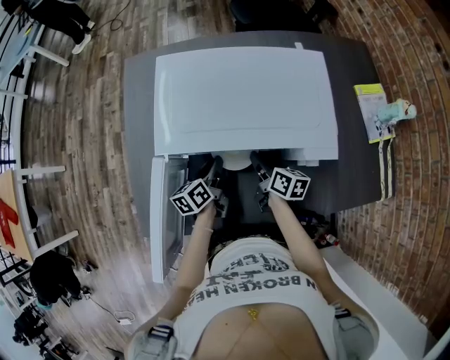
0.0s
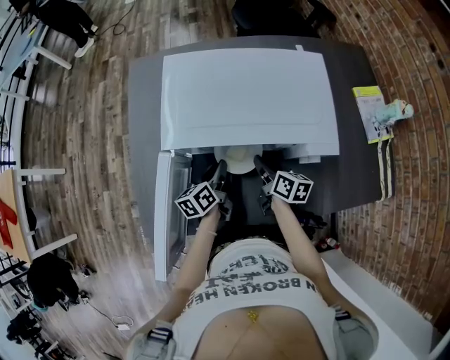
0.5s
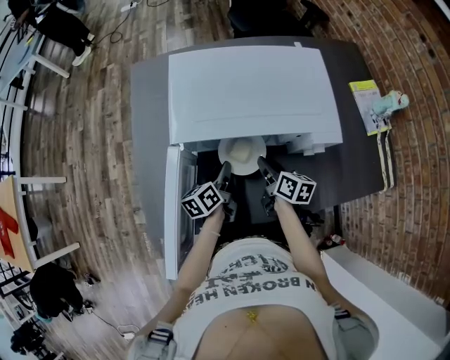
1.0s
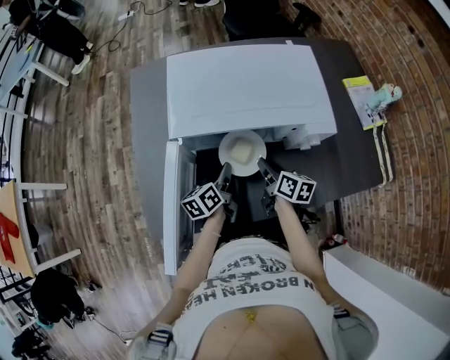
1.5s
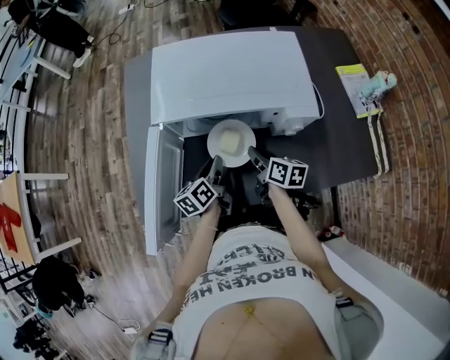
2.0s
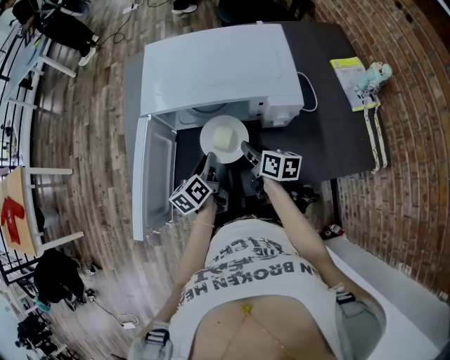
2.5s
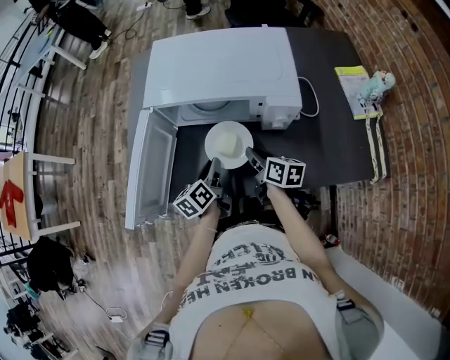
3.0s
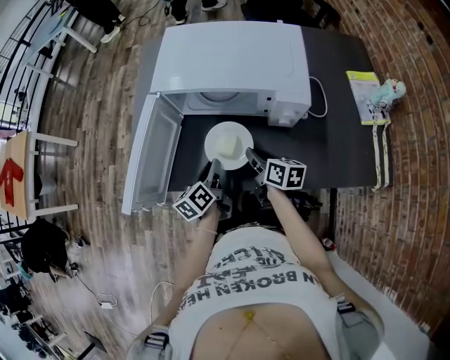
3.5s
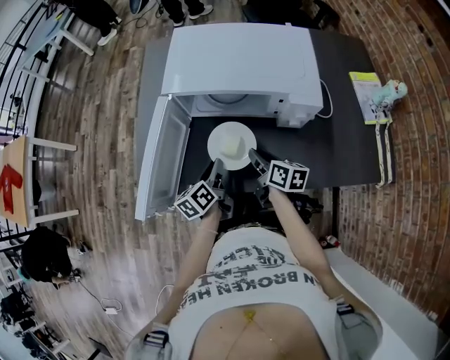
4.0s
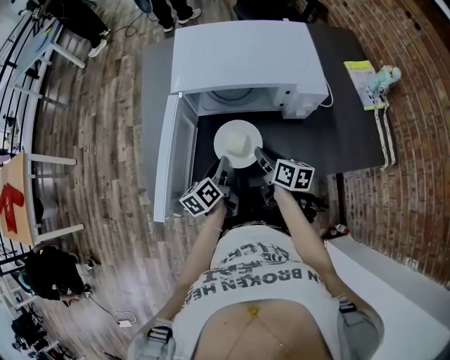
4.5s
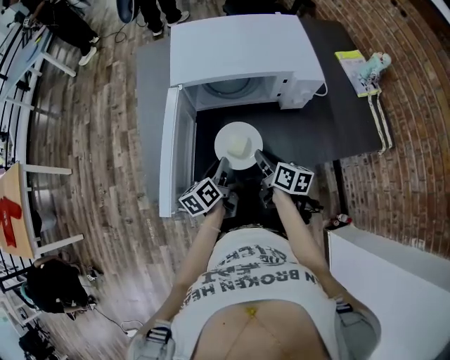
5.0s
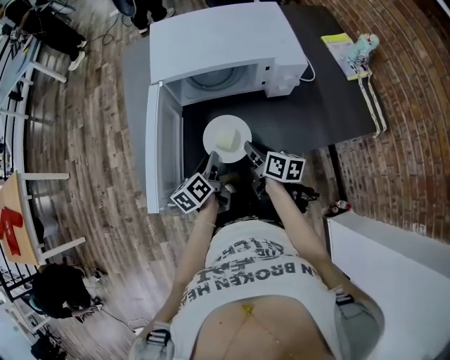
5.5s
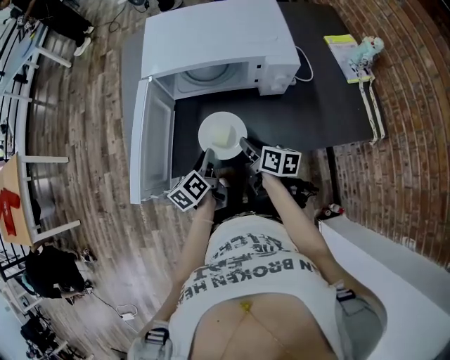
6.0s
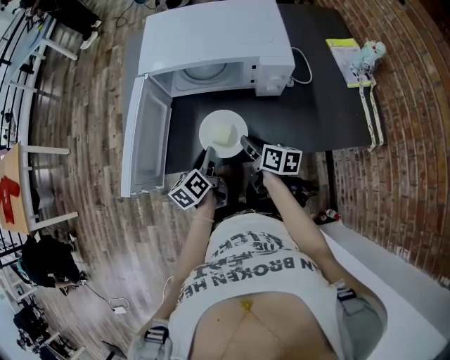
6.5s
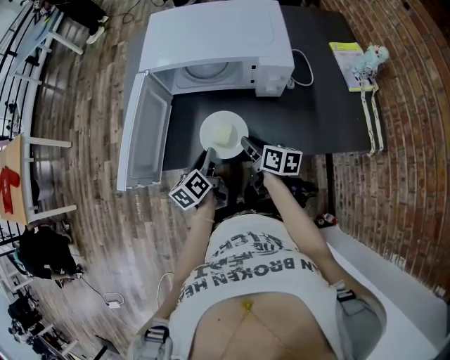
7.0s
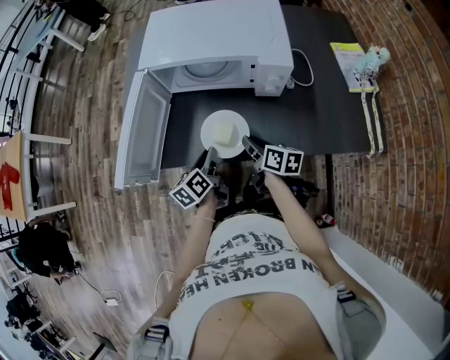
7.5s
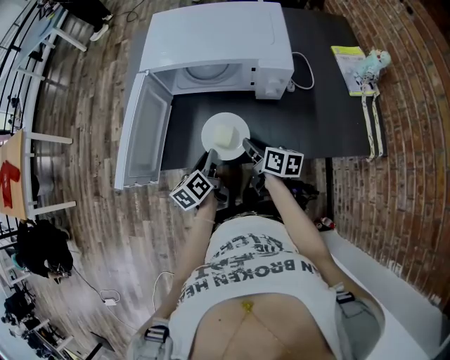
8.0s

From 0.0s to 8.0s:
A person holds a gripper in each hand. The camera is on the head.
From 0.0s to 2.0s: The two grippers go some 10 cm backward.
From 2.0s to 4.0s: The grippers both shift backward by roughly 5 cm.
From 4.0s to 6.0s: The two grippers go some 5 cm backward.
From 6.0s to 8.0s: The left gripper moves roughly 5 cm.

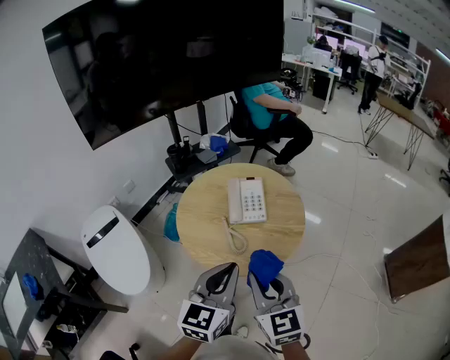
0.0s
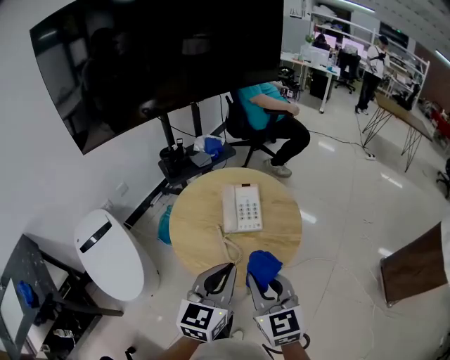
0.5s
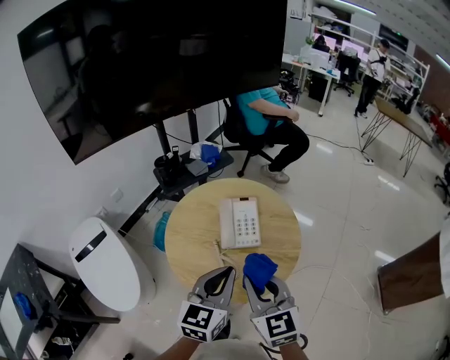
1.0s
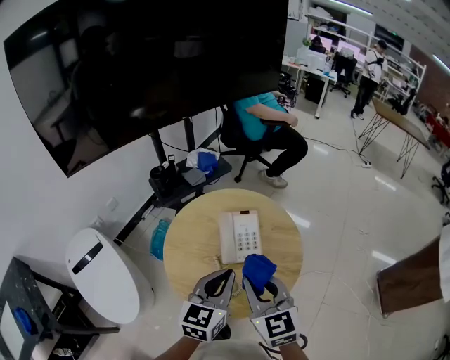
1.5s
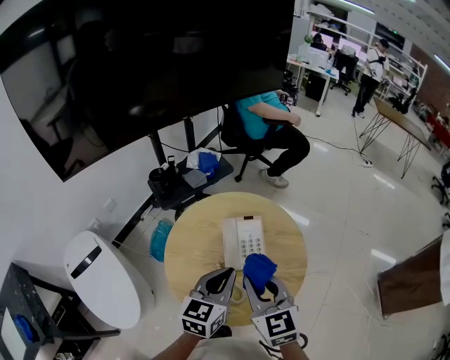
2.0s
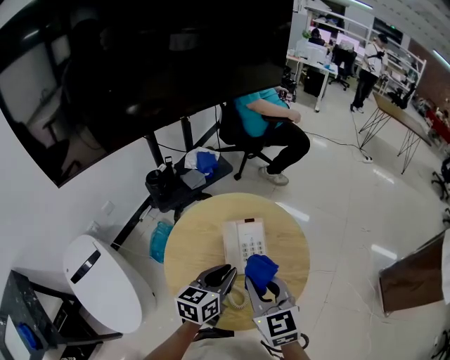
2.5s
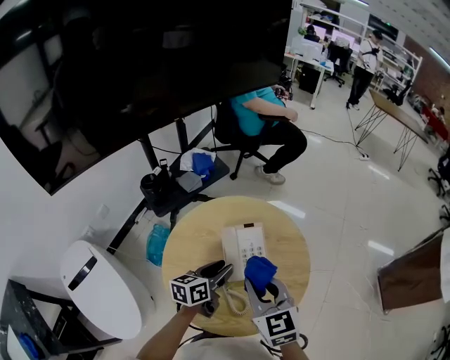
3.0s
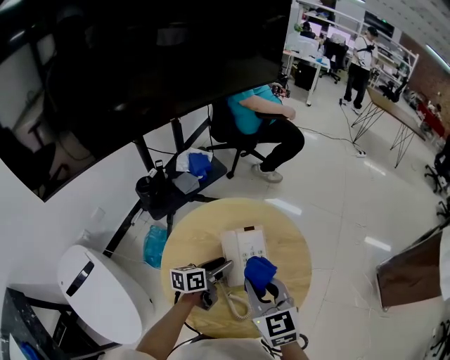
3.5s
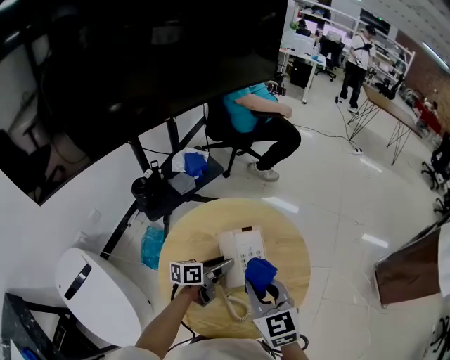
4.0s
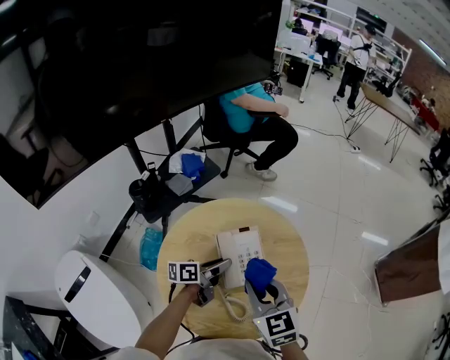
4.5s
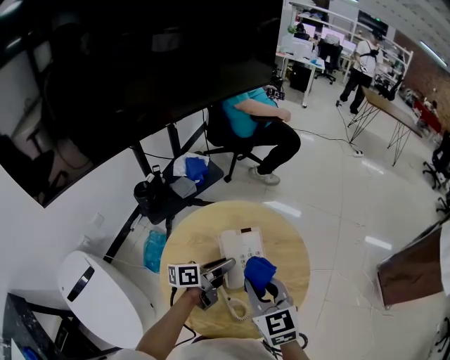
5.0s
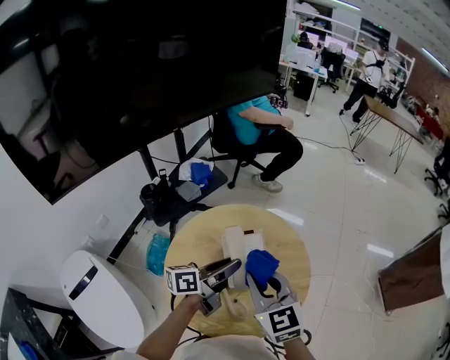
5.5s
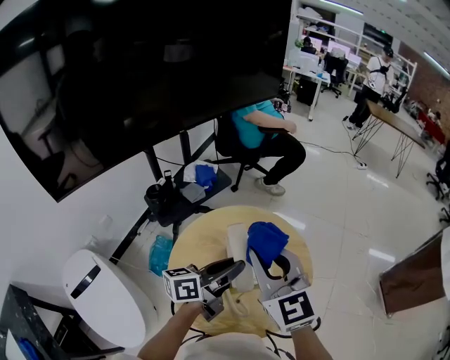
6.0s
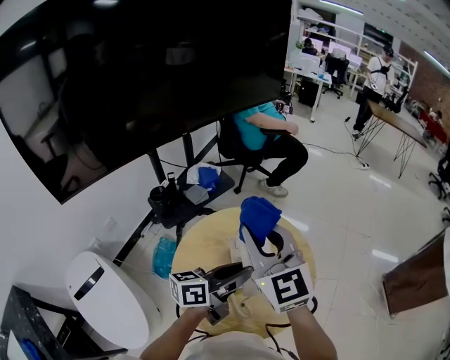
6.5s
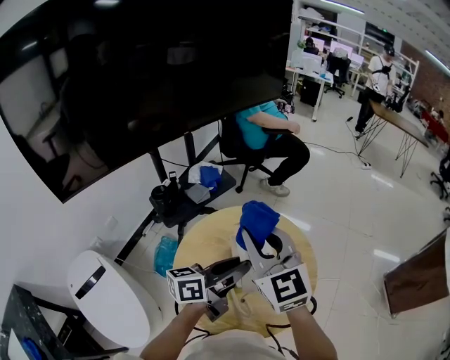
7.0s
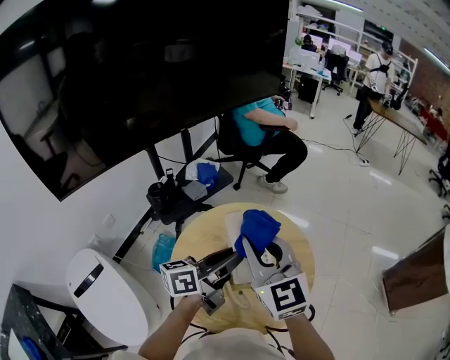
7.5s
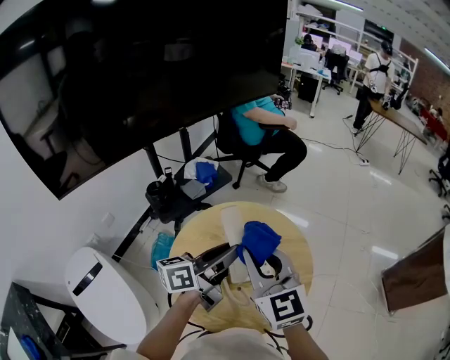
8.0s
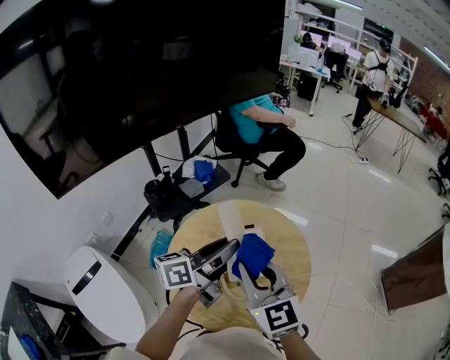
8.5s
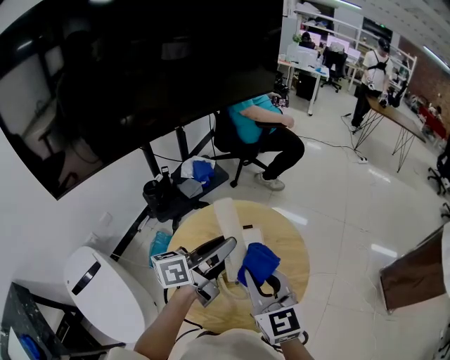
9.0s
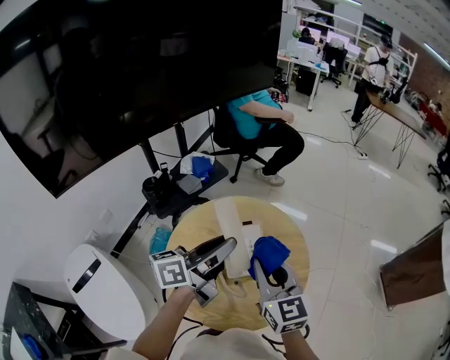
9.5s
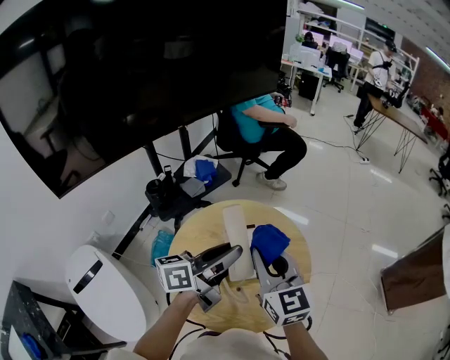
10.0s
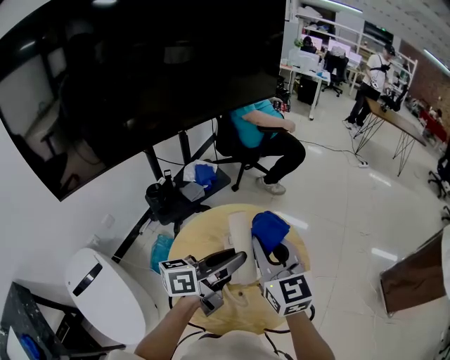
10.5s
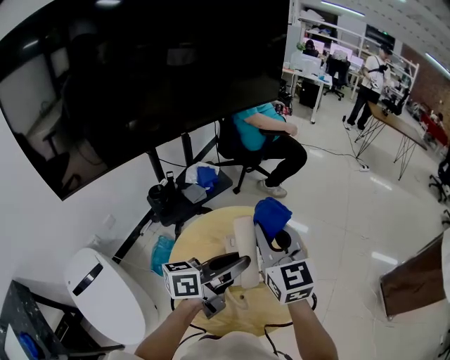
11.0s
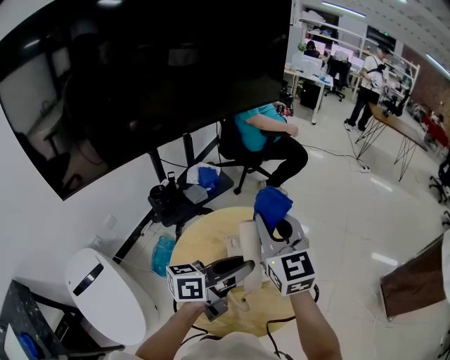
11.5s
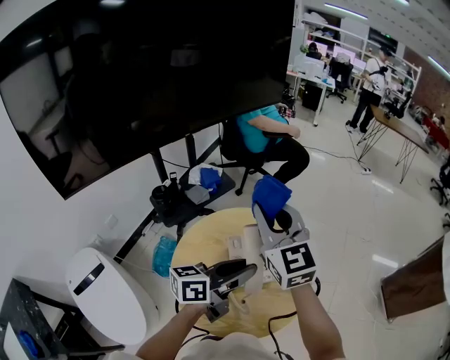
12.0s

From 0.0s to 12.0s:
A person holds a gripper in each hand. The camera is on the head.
From 0.0s to 2.0s: The two grippers go approximately 20 cm forward.
From 2.0s to 4.0s: The right gripper goes some 10 cm forward and downward. The left gripper goes roughly 20 cm downward and forward, swivels roughly 50 degrees, and opens.
From 4.0s to 6.0s: The grippers both shift upward by approximately 20 cm. The right gripper rotates approximately 20 degrees. The left gripper rotates some 20 degrees, and closes up.
From 6.0s to 8.0s: The grippers stay close to where they were, moving slightly.
From 10.0s to 12.0s: The right gripper heads upward and forward, covering approximately 10 cm.

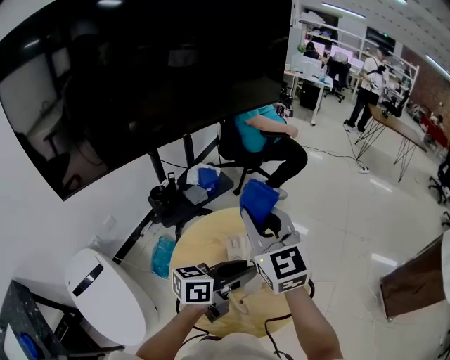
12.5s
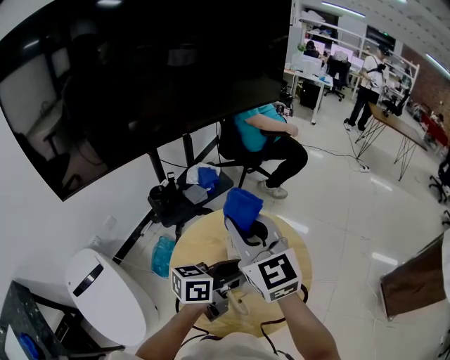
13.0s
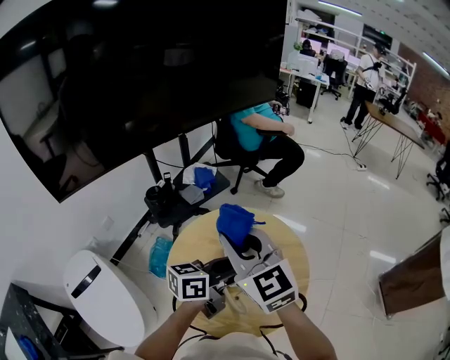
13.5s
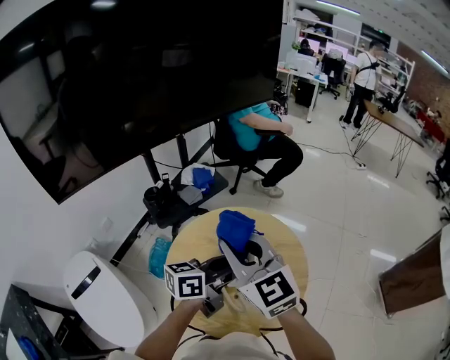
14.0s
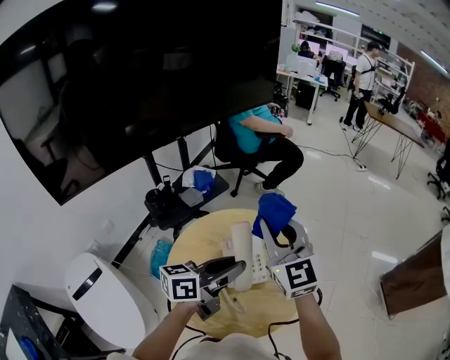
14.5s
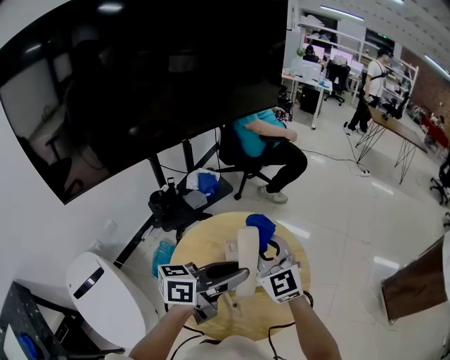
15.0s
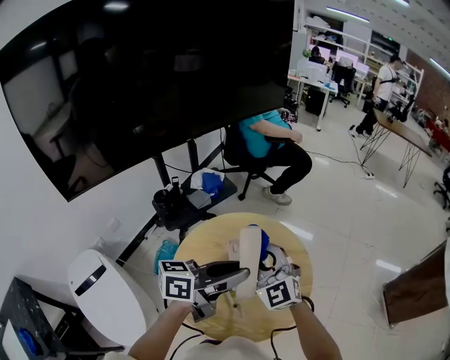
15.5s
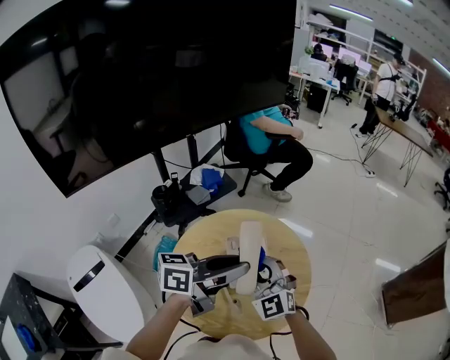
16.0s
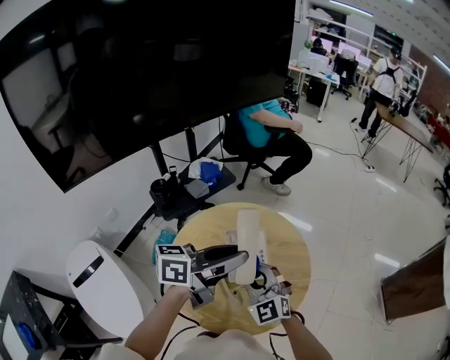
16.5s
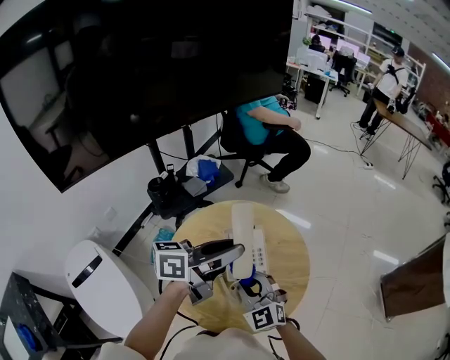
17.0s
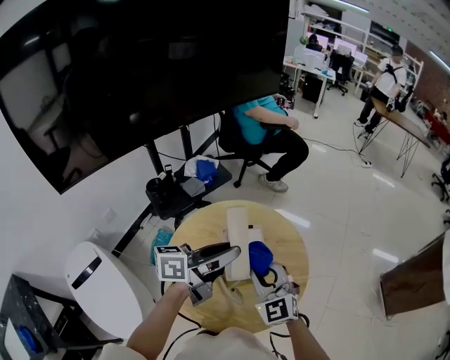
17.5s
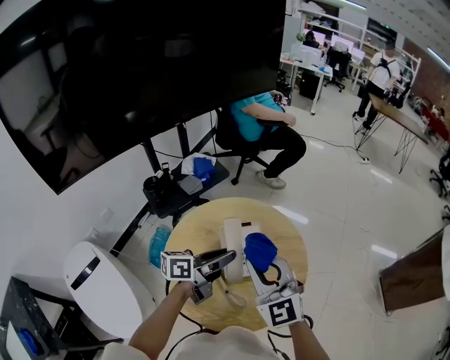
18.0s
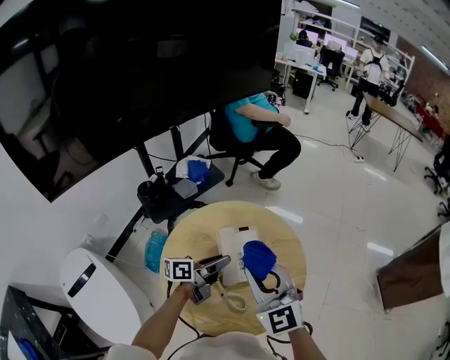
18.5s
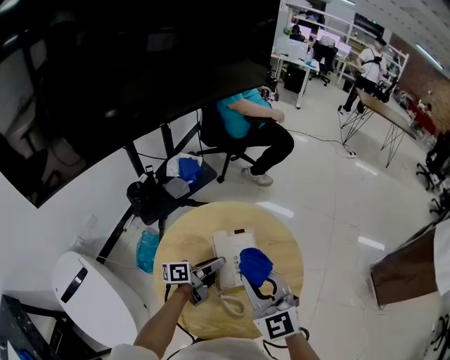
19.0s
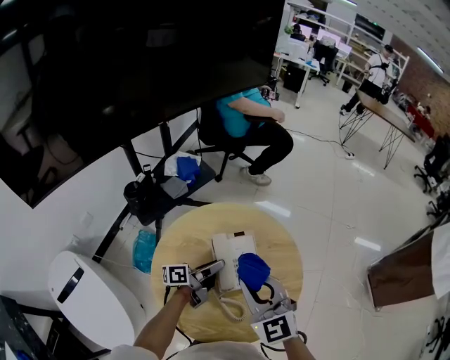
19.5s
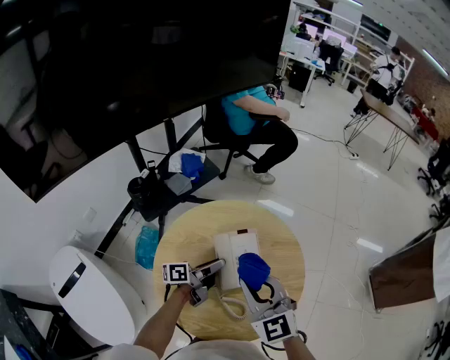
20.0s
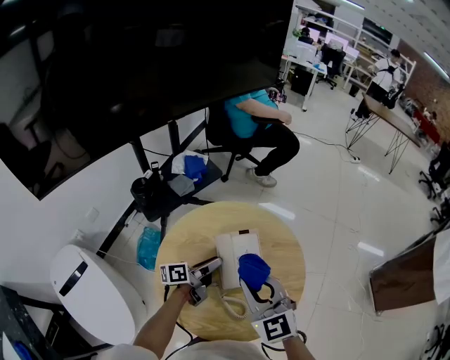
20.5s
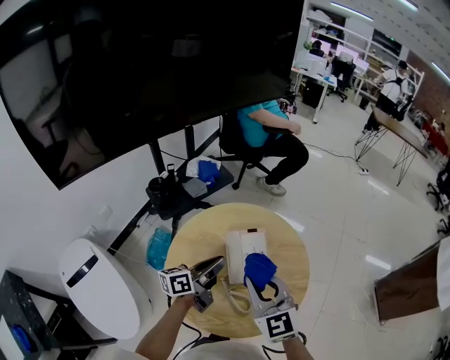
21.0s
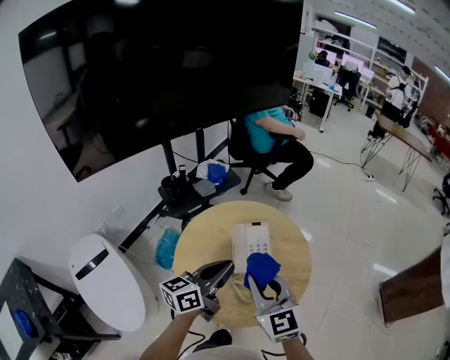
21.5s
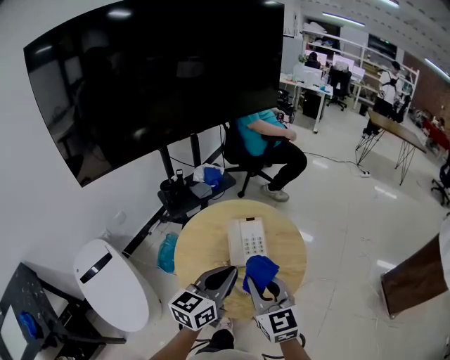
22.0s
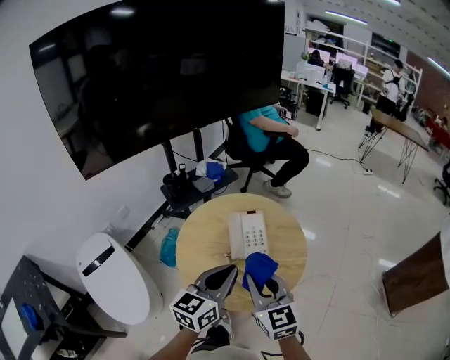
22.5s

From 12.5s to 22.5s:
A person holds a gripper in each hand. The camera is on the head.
From 12.5s to 14.5s: The right gripper is displaced to the right by approximately 5 cm.
From 14.5s to 16.5s: The right gripper moves downward and backward, approximately 20 cm, and rotates about 30 degrees.
From 16.5s to 18.5s: The left gripper is displaced downward by some 20 cm, and turns by roughly 20 degrees. Meanwhile the right gripper heads upward, covering roughly 10 cm.
From 18.5s to 20.5s: The left gripper heads downward, covering roughly 5 cm.
From 20.5s to 22.5s: The left gripper is displaced upward and backward by about 30 cm, rolls clockwise, seen from behind, by about 50 degrees, and closes up; the right gripper shifts about 15 cm backward.
